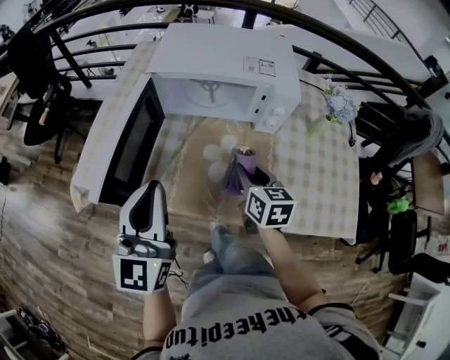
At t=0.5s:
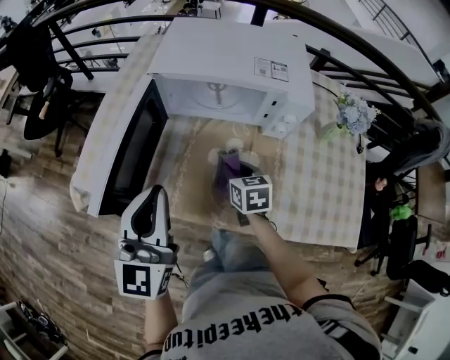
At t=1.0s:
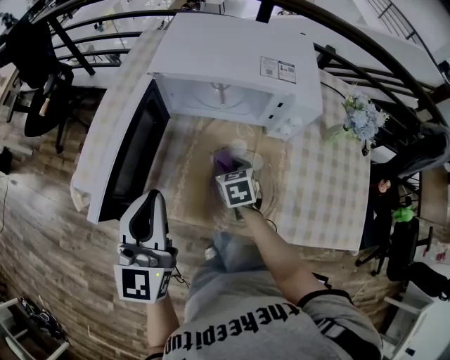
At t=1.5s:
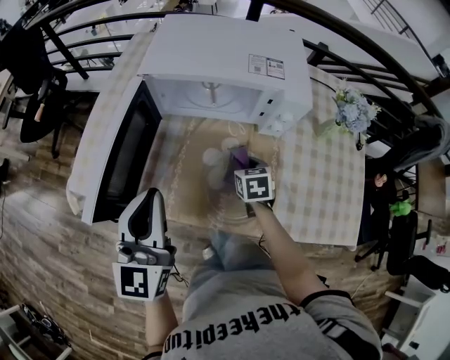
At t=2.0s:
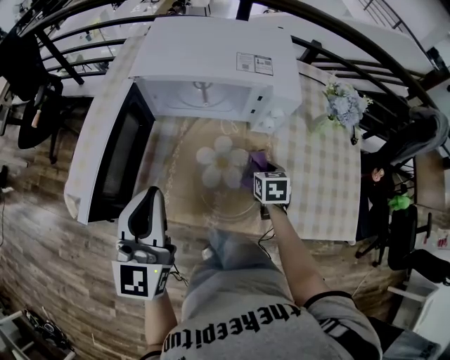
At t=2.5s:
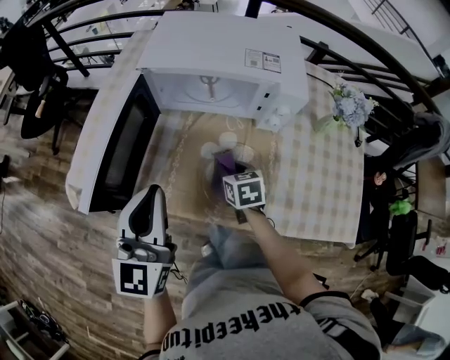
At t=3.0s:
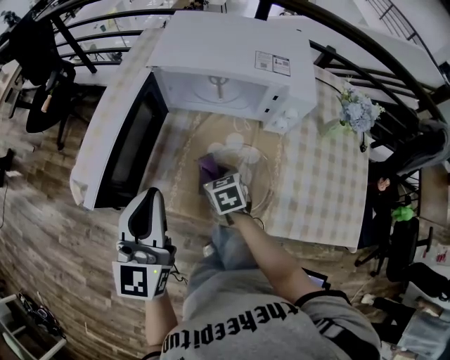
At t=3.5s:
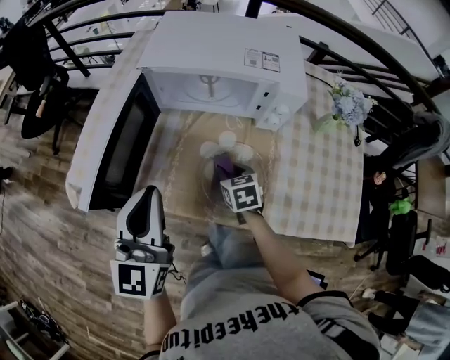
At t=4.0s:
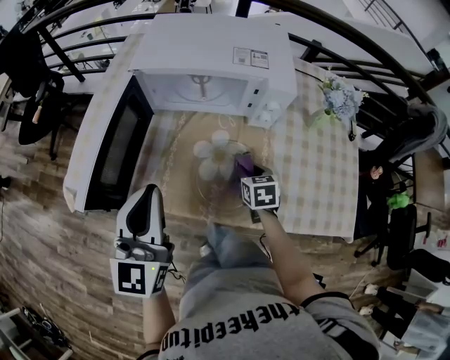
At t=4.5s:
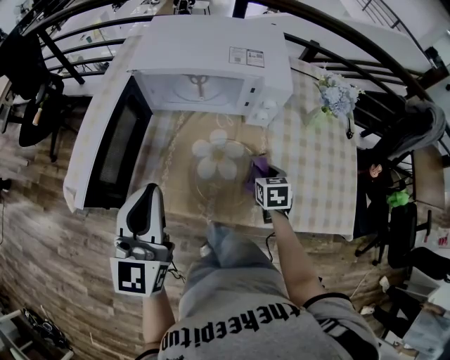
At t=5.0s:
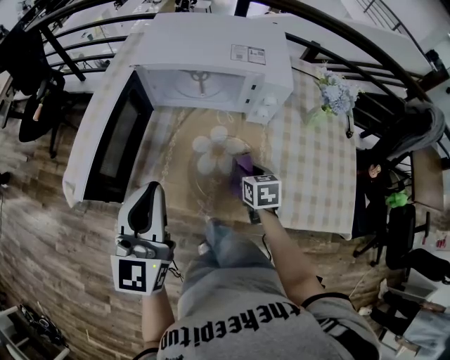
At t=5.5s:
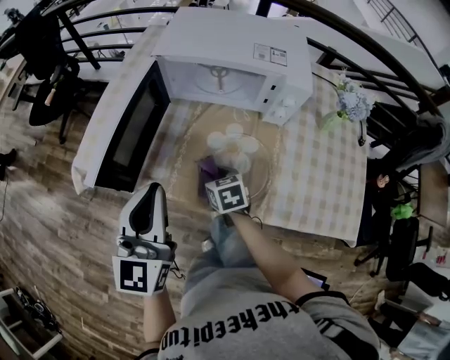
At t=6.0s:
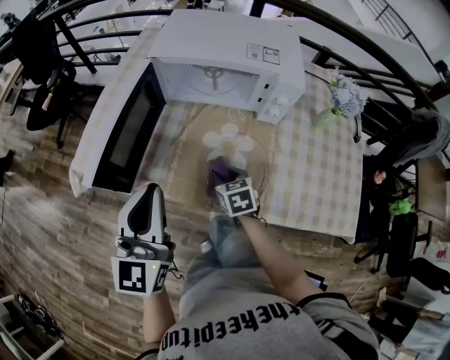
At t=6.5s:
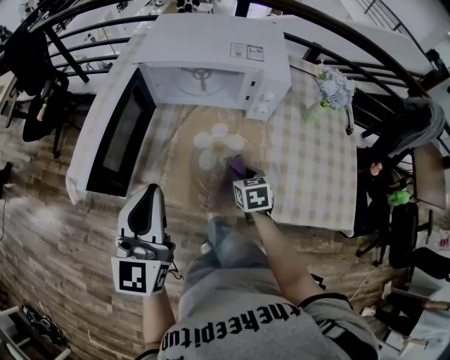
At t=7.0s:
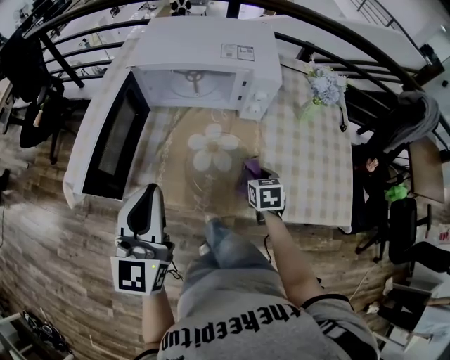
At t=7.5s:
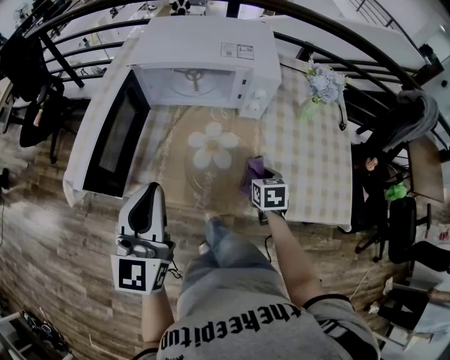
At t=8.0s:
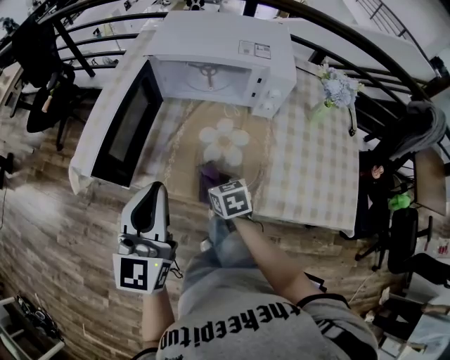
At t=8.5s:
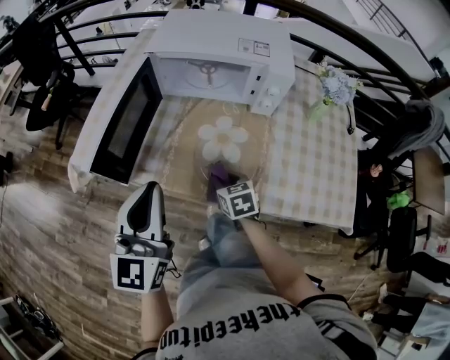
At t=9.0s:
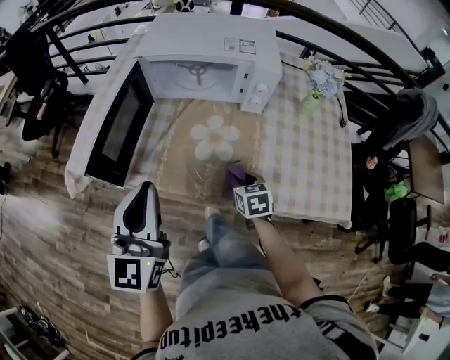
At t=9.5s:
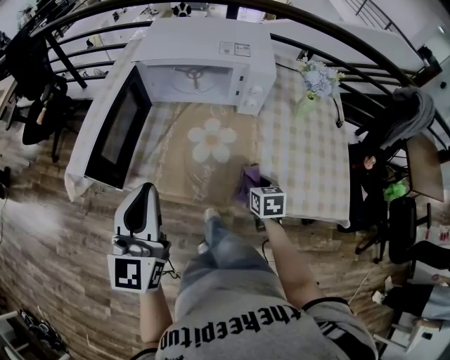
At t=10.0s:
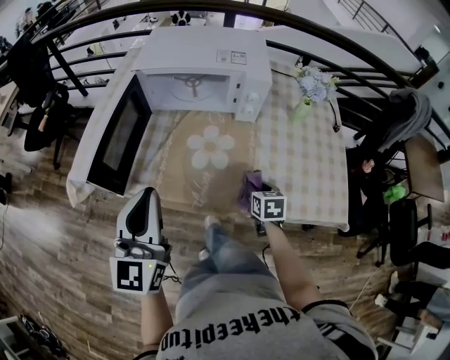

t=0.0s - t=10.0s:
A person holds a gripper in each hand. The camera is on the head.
t=0.0s - t=2.0s: The left gripper changes place by about 5 cm. The right gripper shifts about 15 cm downward and to the right, and turns by roughly 20 degrees.
t=2.0s - t=4.0s: The right gripper reaches some 20 cm to the left, then returns.
t=4.0s - t=6.0s: The right gripper moves left and right over roughly 20 cm, changing direction 2 times.
t=6.0s - t=8.0s: The right gripper moves some 15 cm to the right and comes back.
t=8.0s - t=10.0s: The right gripper moves to the right, some 20 cm, and rotates roughly 20 degrees.

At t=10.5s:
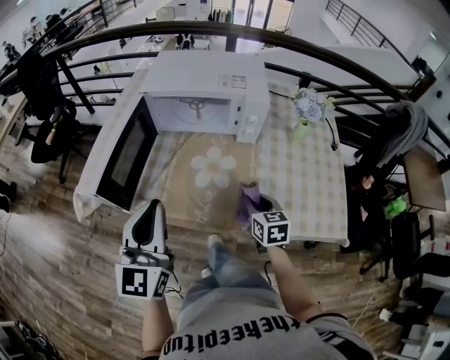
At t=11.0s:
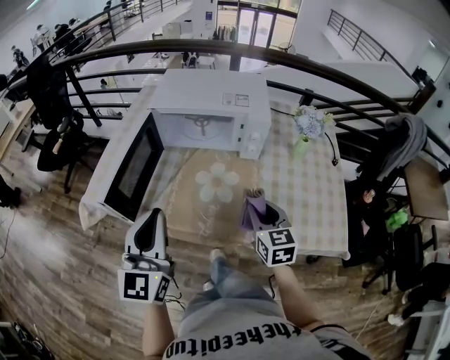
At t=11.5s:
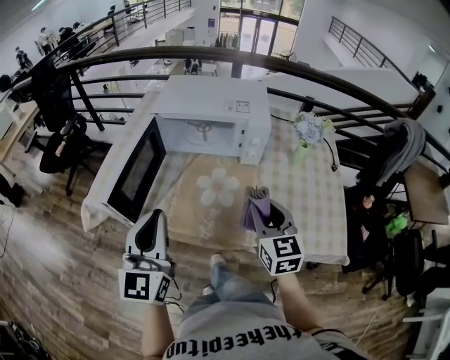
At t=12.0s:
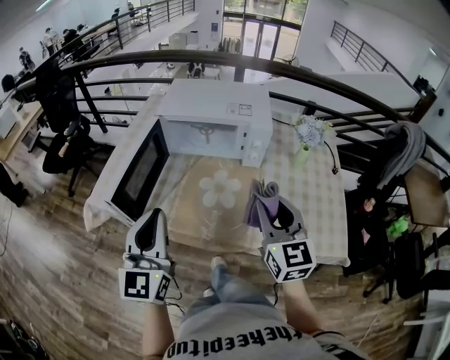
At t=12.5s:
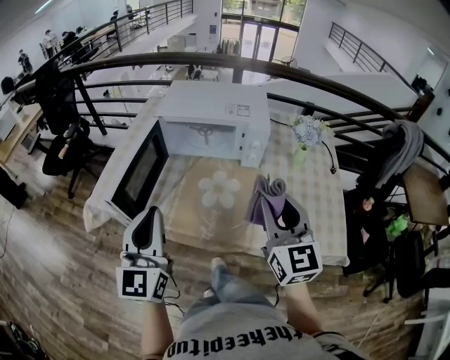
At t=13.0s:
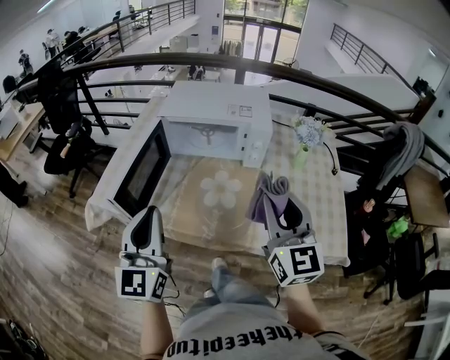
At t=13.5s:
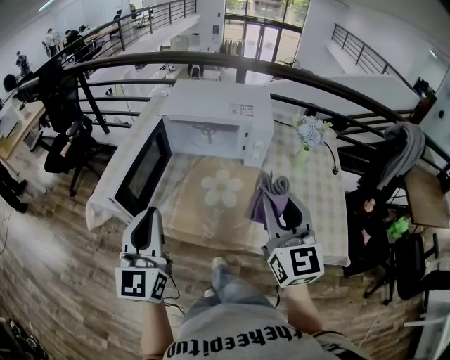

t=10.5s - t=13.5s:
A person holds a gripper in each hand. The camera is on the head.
t=10.5s - t=12.0s: The right gripper is displaced upward by roughly 20 cm, and turns by about 30 degrees.
t=12.0s - t=13.5s: The right gripper heads upward, covering roughly 5 cm.

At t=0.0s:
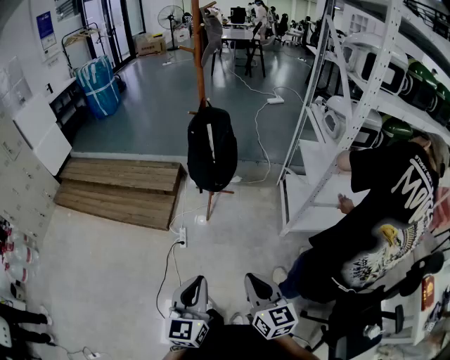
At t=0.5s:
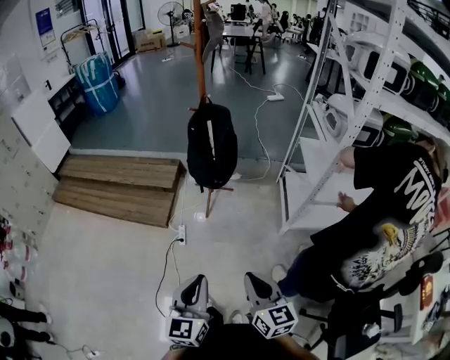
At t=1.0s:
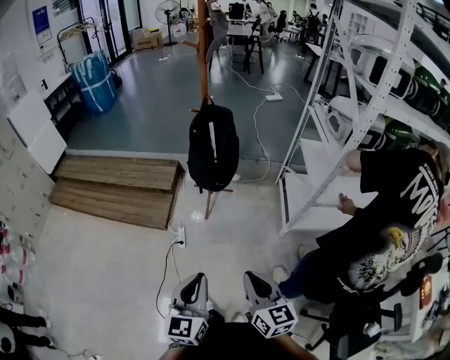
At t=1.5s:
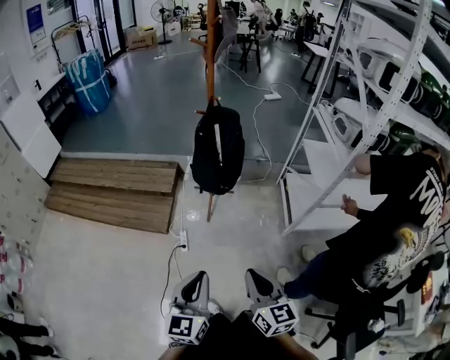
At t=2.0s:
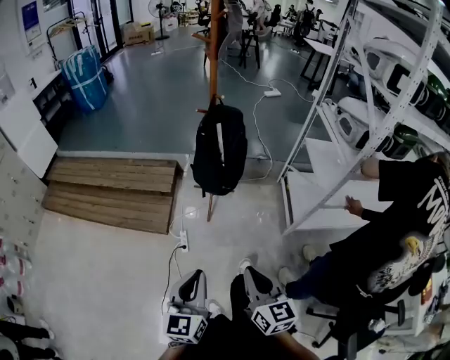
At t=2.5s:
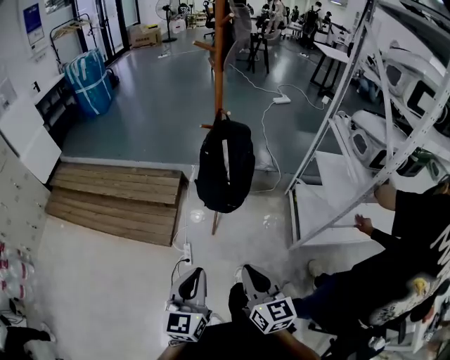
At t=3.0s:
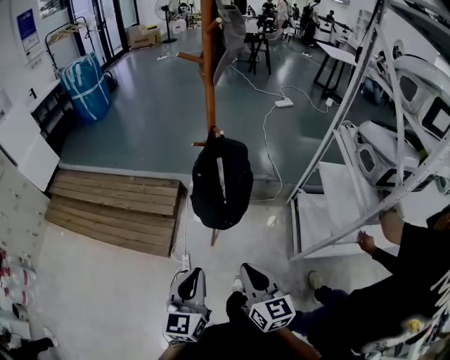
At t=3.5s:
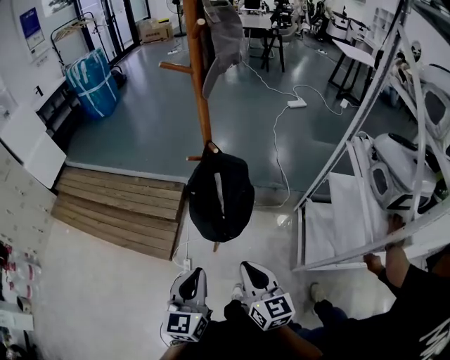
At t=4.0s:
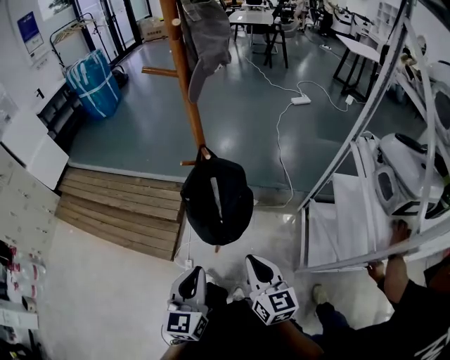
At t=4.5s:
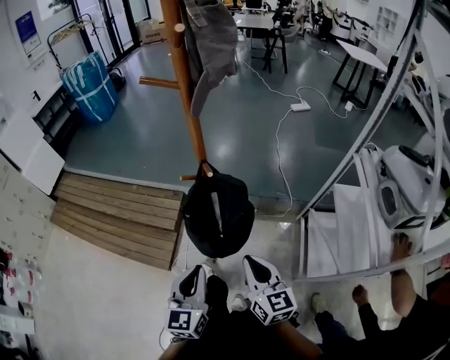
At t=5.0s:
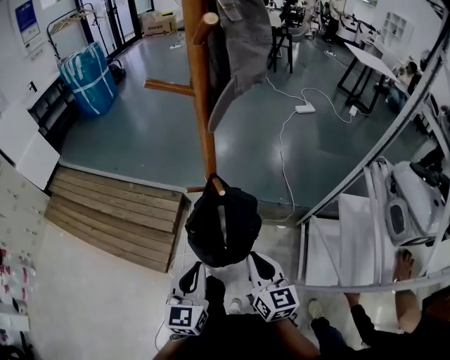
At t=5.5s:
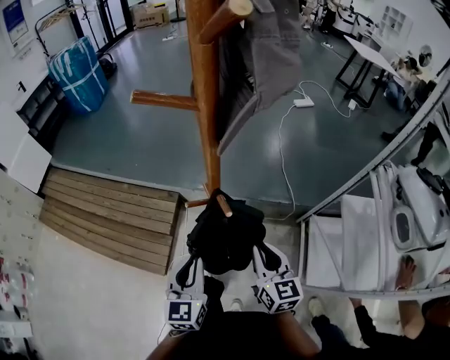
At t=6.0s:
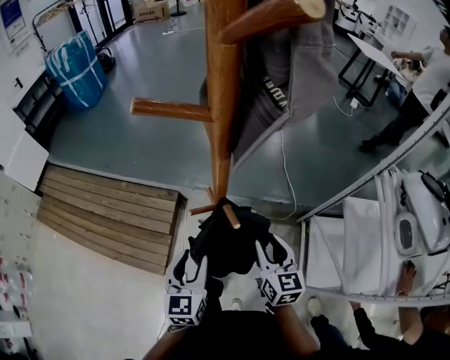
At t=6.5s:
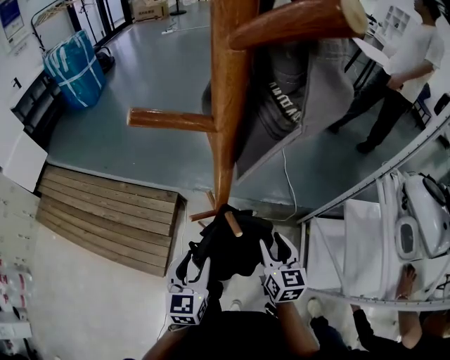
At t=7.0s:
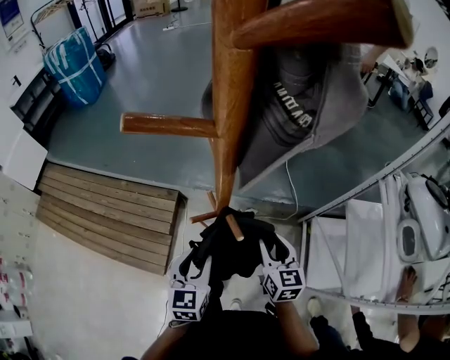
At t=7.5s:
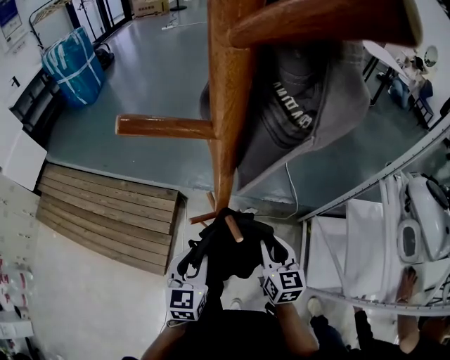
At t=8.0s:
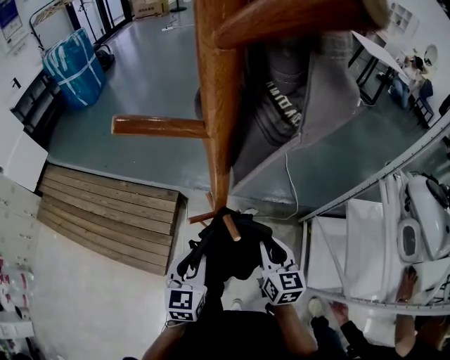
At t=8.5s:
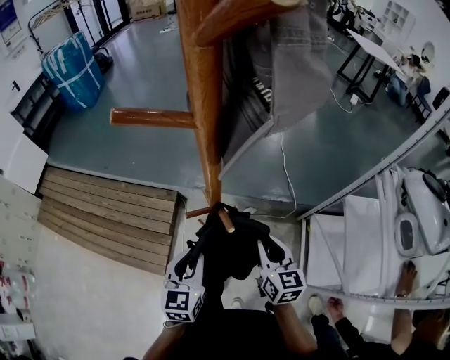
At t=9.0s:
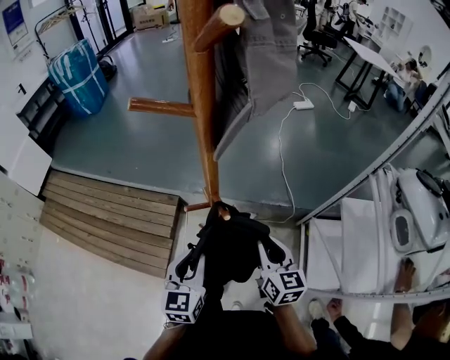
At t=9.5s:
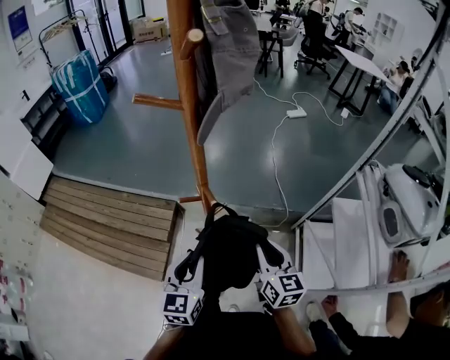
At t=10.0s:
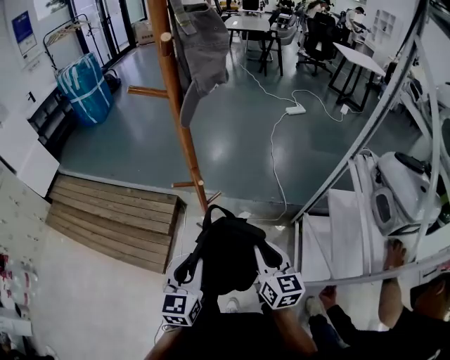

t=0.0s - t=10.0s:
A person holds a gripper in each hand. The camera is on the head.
t=0.0s - t=2.0s: The two grippers go approximately 15 cm forward and to the left.
t=2.0s - t=4.0s: Both grippers travel together forward, approximately 35 cm.
t=4.0s - t=6.0s: Both grippers move forward, some 25 cm. The right gripper opens up. The left gripper opens.
t=6.0s - t=8.0s: There are only small adjustments of the grippers.
t=8.0s - t=10.0s: The left gripper is displaced backward, upward and to the right by about 20 cm. The right gripper shifts about 20 cm backward and upward.

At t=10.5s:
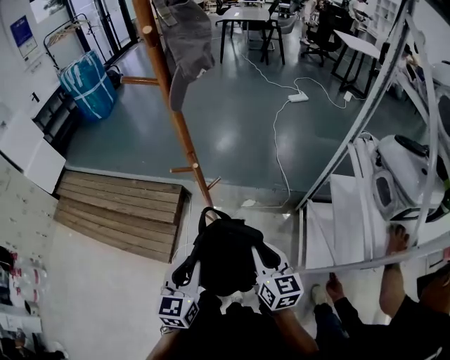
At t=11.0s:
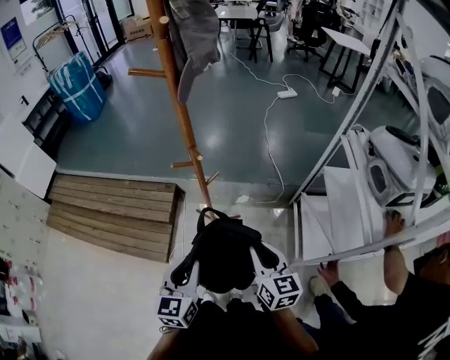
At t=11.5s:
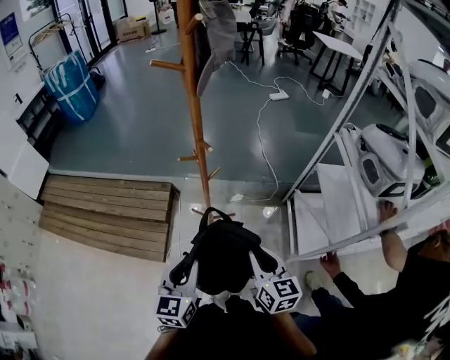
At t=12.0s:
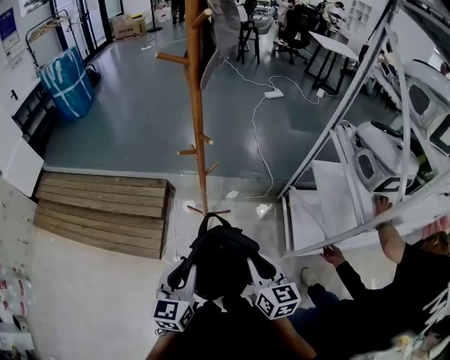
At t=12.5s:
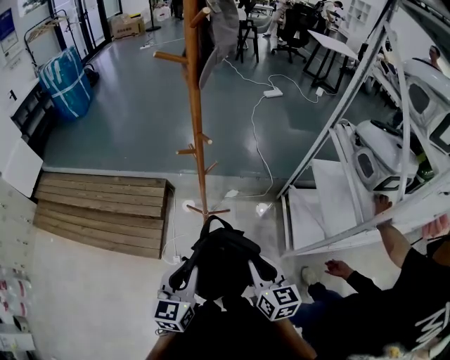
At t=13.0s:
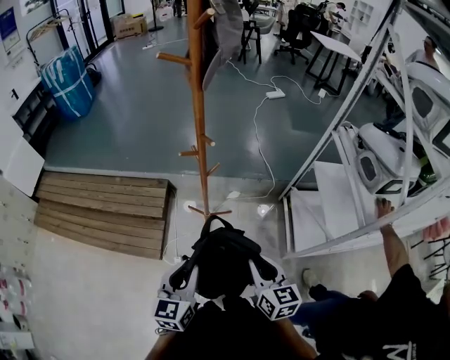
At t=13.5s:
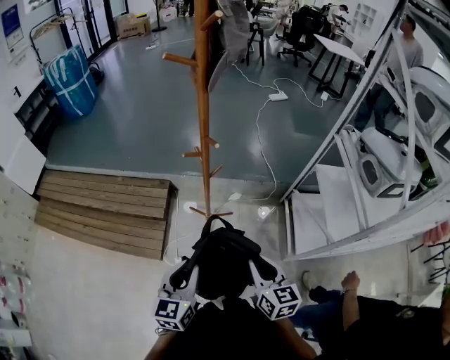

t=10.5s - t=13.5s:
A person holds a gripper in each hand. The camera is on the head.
t=10.5s - t=12.0s: The two grippers go about 15 cm backward and to the left.
t=12.0s - t=13.5s: Both grippers stay about where they are.
